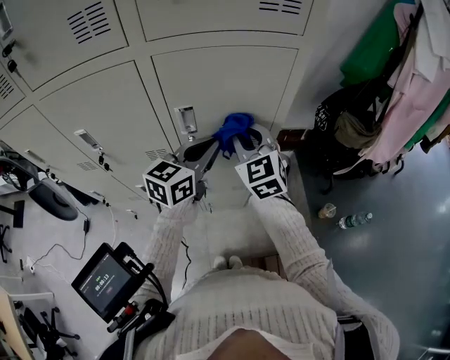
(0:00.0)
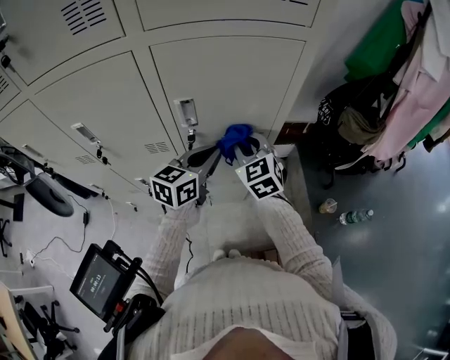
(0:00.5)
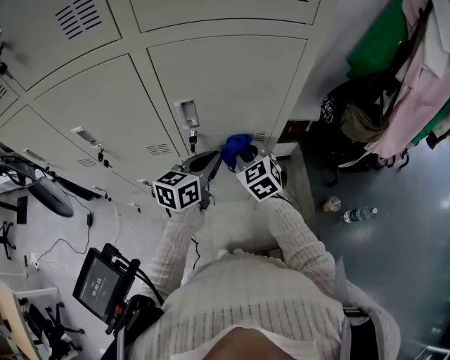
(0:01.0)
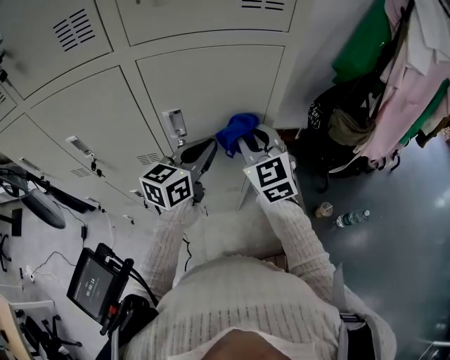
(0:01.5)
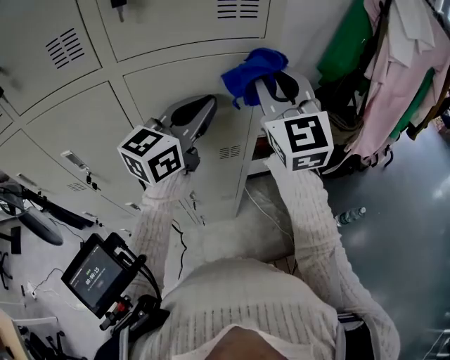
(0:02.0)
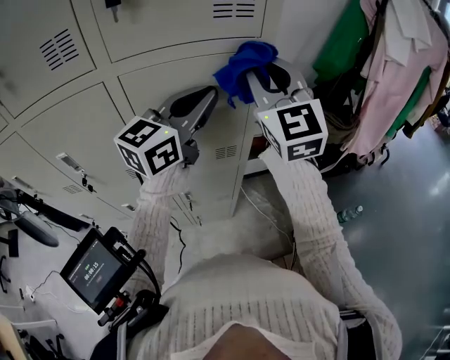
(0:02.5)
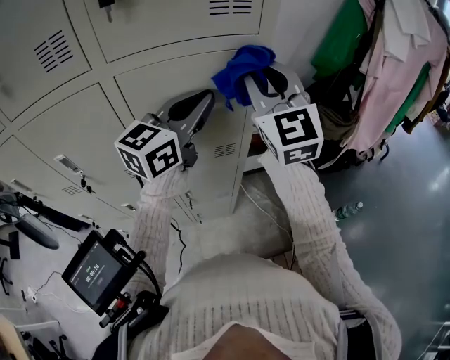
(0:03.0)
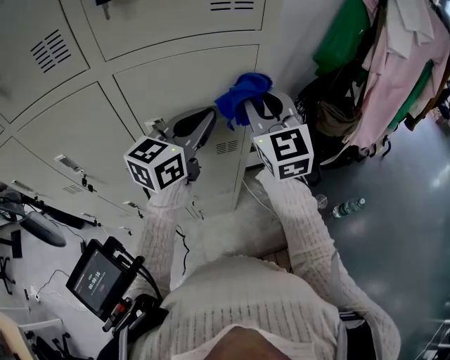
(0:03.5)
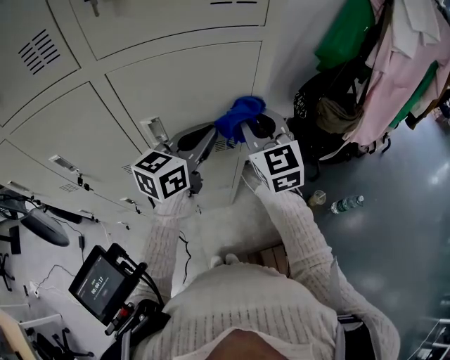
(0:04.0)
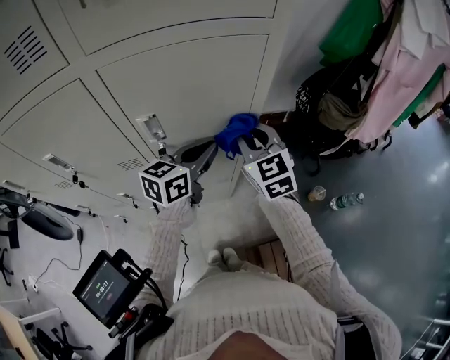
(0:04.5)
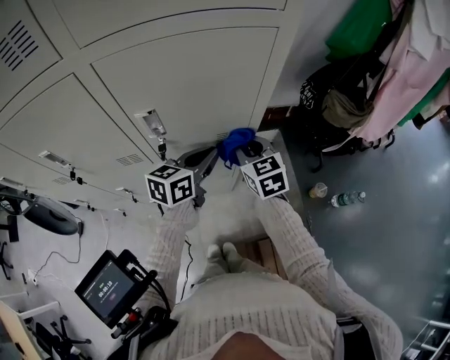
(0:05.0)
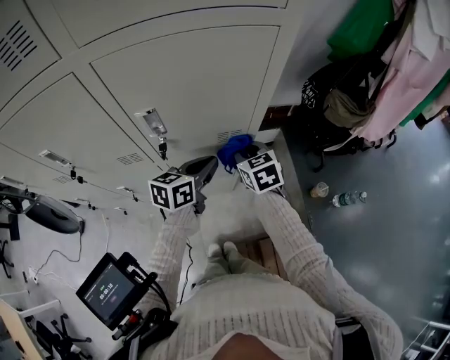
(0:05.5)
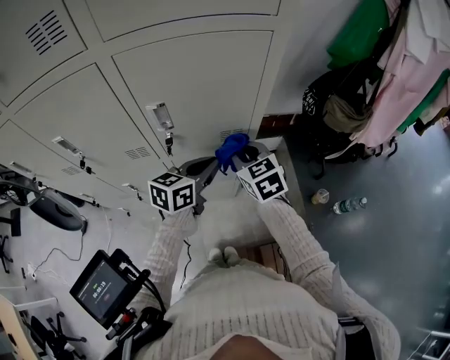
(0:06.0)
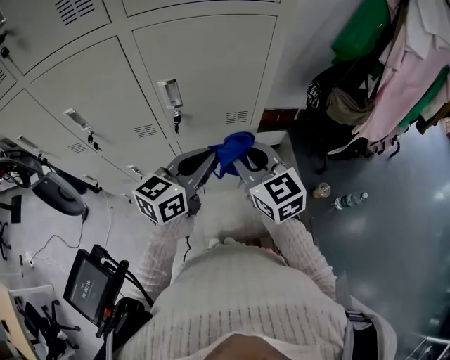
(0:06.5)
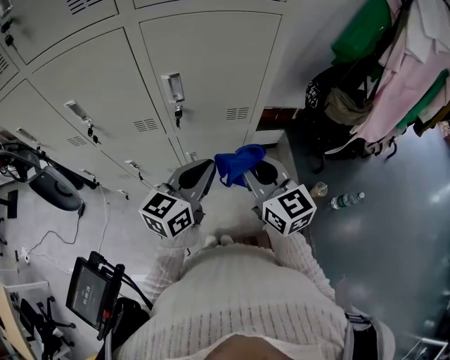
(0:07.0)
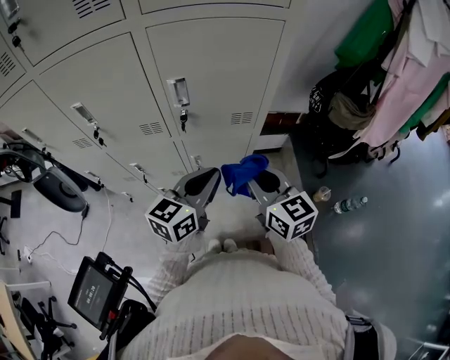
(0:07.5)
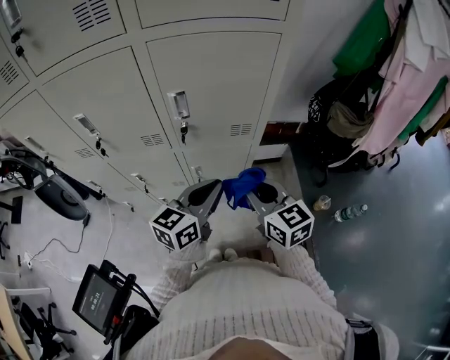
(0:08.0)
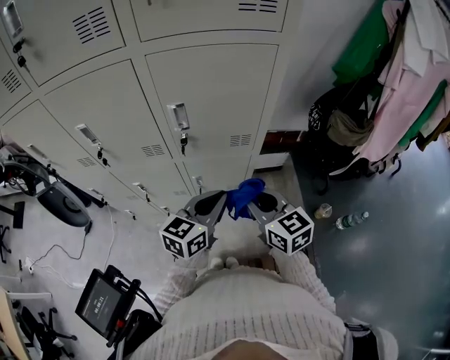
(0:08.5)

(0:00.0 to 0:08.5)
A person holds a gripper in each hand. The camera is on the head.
0:00.0 - 0:02.0: The right gripper is displaced upward and to the right by approximately 25 cm, and rotates roughly 30 degrees, while the left gripper shifts roughly 15 cm upward.
0:02.0 - 0:04.0: The two grippers go approximately 15 cm downward.
0:04.0 - 0:06.5: The grippers both shift backward by approximately 15 cm. The left gripper travels downward and back again, approximately 15 cm each way; the right gripper reaches roughly 20 cm downward, then returns, and turns by about 20 degrees.
0:06.5 - 0:08.5: The two grippers go some 5 cm downward.

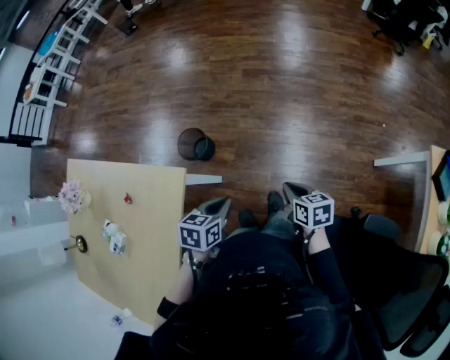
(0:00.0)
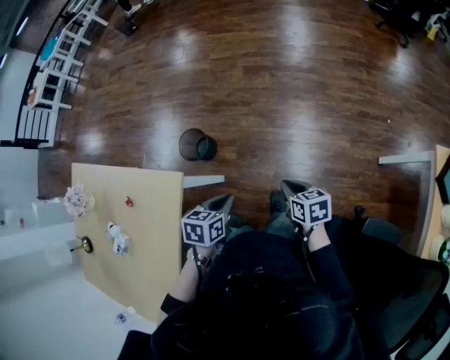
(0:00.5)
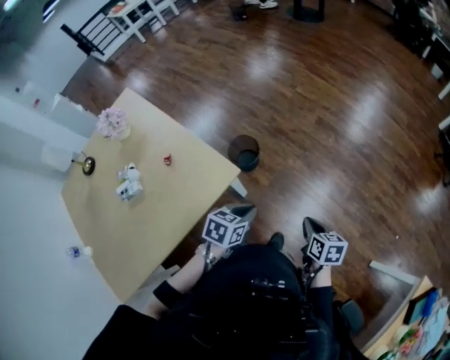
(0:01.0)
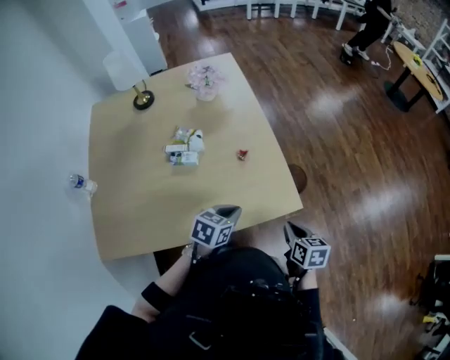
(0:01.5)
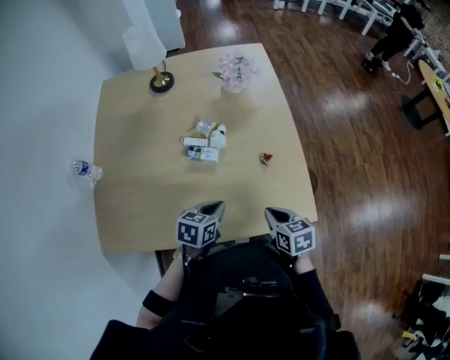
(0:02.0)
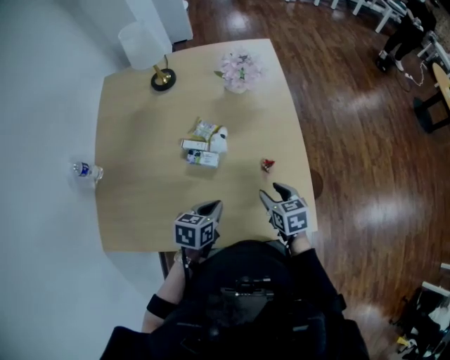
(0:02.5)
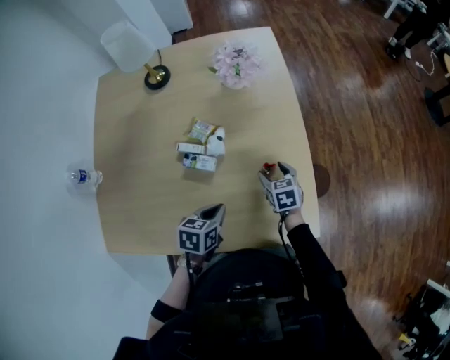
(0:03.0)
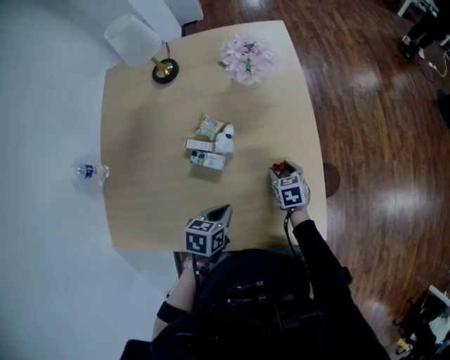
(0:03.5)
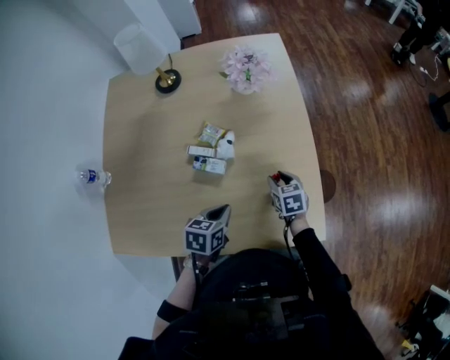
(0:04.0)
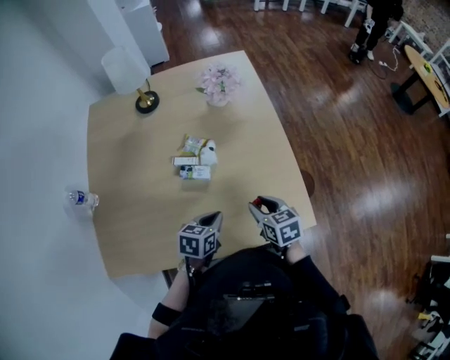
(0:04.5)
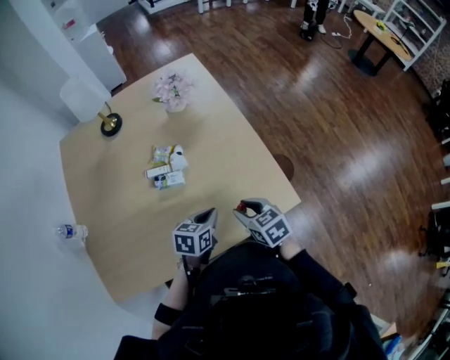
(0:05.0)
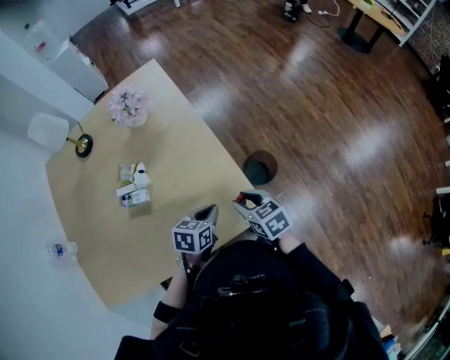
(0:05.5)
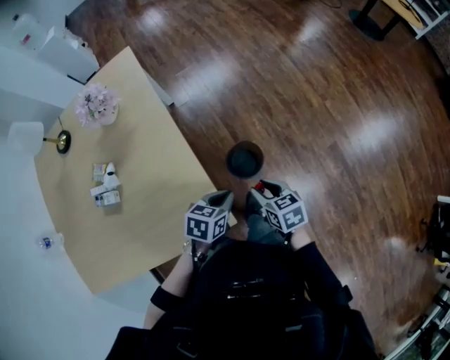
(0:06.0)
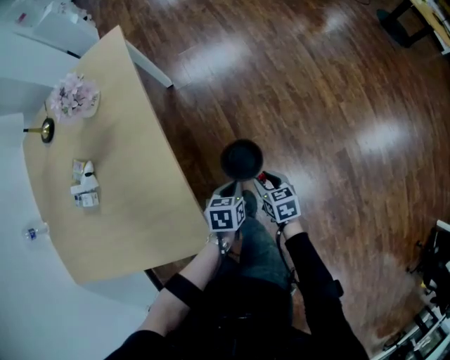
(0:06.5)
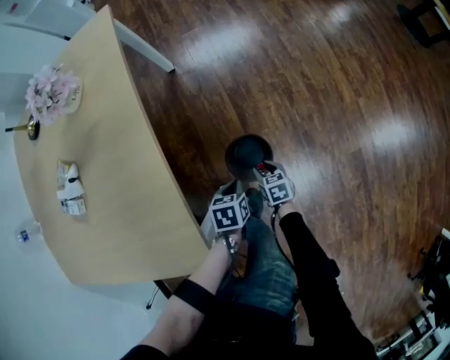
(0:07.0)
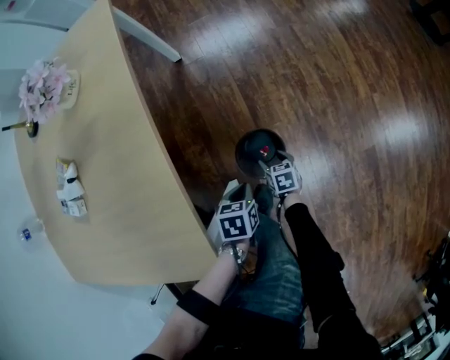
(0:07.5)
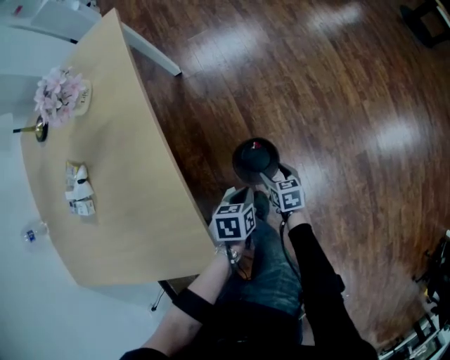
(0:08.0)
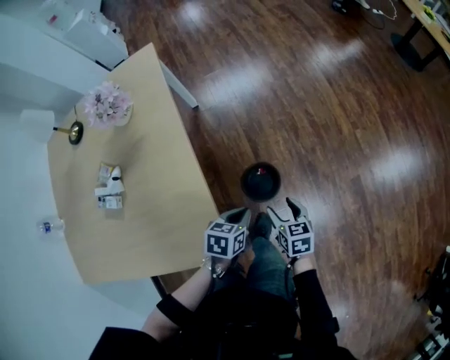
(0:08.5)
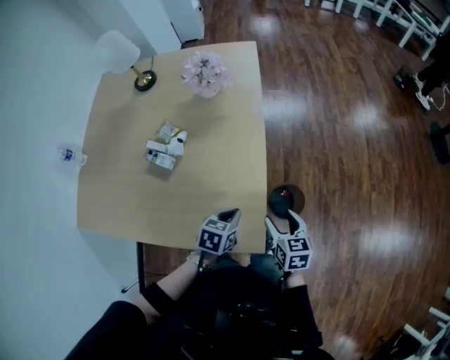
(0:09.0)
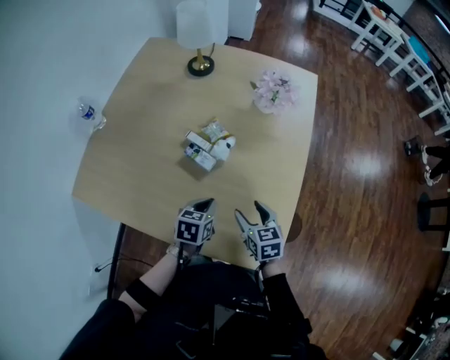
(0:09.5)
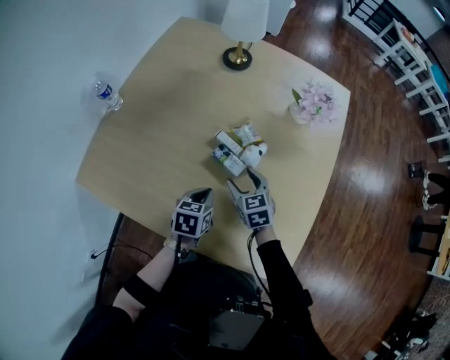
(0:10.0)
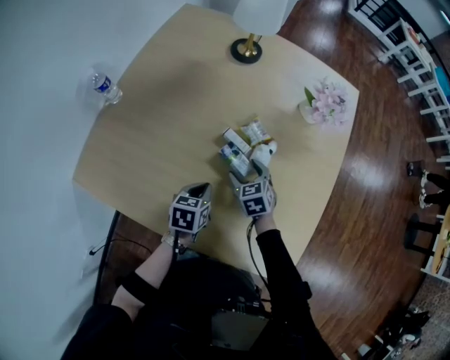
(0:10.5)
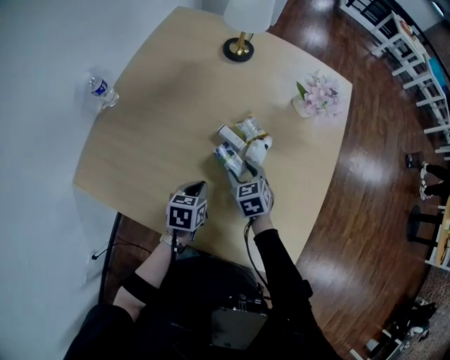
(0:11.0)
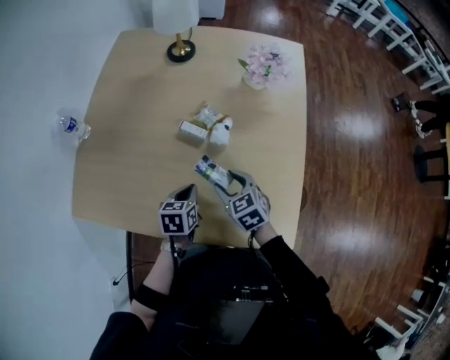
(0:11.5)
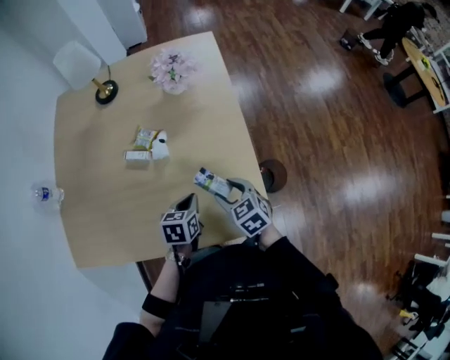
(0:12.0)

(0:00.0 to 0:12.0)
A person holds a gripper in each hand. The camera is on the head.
0:00.0 - 0:02.0: The two grippers travel together, about 50 cm. The right gripper changes its angle by roughly 80 degrees, while the left gripper turns by about 70 degrees.
0:02.0 - 0:04.0: The left gripper moves forward, approximately 5 cm, while the right gripper heads forward and downward, covering roughly 20 cm, and opens.
0:04.0 - 0:06.0: The two grippers go approximately 40 cm to the right. The left gripper turns by roughly 30 degrees.
0:06.0 - 0:08.0: The grippers both shift downward by about 25 cm. The right gripper opens its fingers; the left gripper turns by roughly 30 degrees.
0:08.0 - 0:10.0: The pair of grippers is taken some 60 cm. The right gripper rolls counterclockwise, seen from behind, by some 50 degrees. Meanwhile the left gripper turns by approximately 30 degrees.
0:10.0 - 0:12.0: The right gripper is displaced to the right and backward by approximately 25 cm; the left gripper shifts roughly 15 cm to the right, and swivels about 20 degrees.

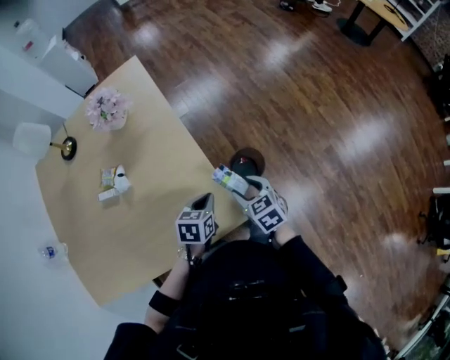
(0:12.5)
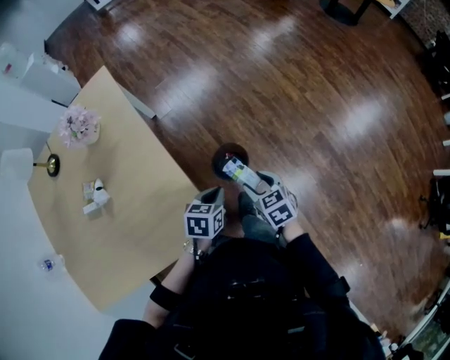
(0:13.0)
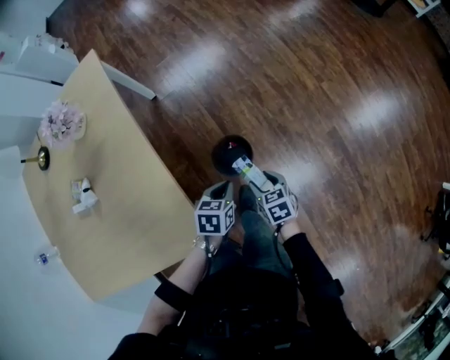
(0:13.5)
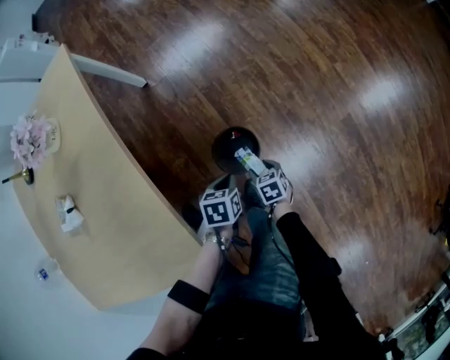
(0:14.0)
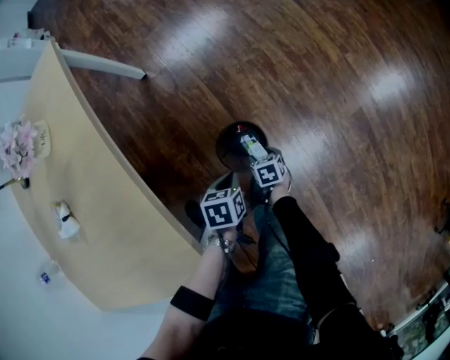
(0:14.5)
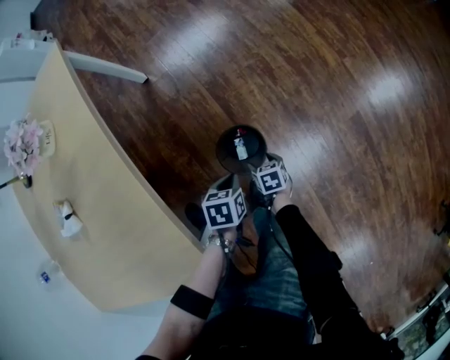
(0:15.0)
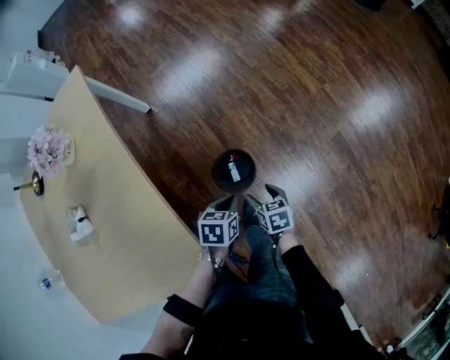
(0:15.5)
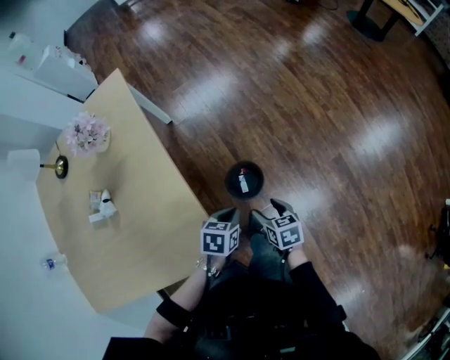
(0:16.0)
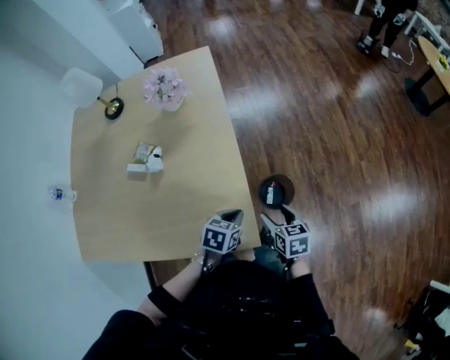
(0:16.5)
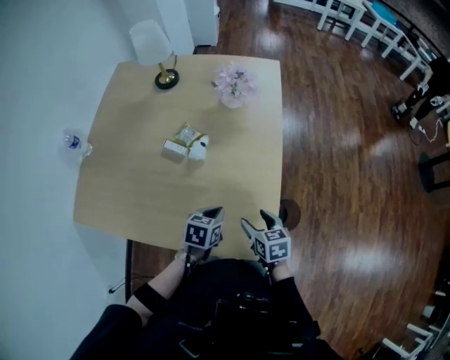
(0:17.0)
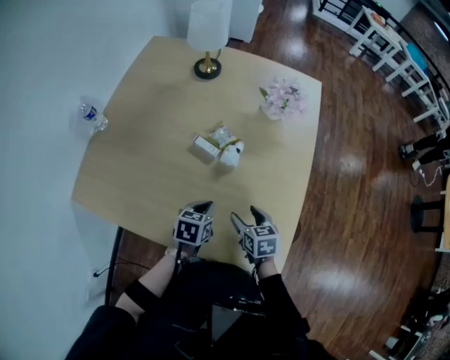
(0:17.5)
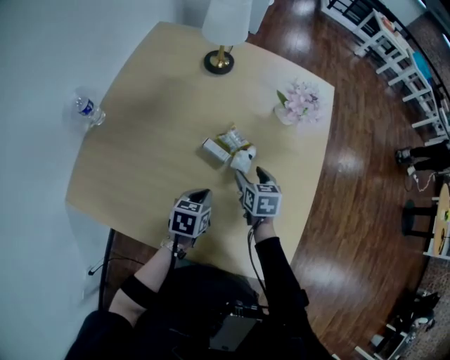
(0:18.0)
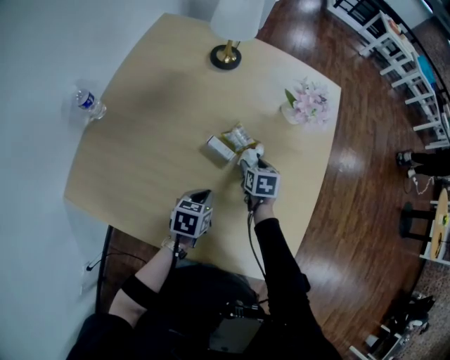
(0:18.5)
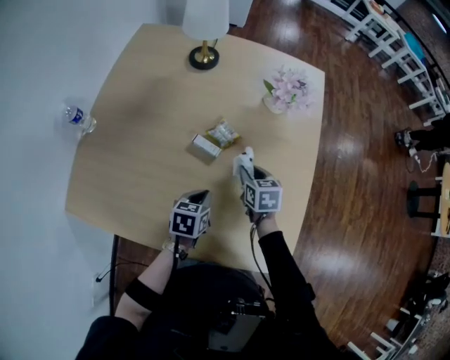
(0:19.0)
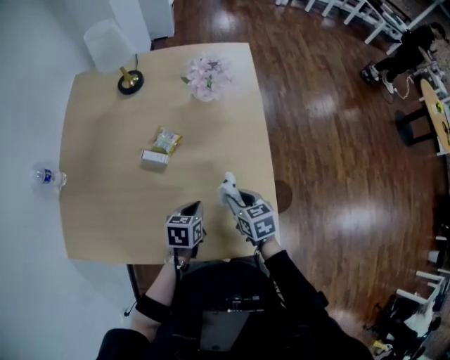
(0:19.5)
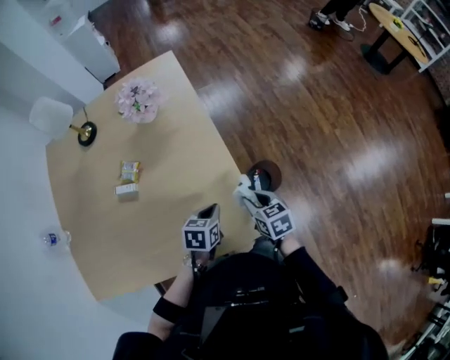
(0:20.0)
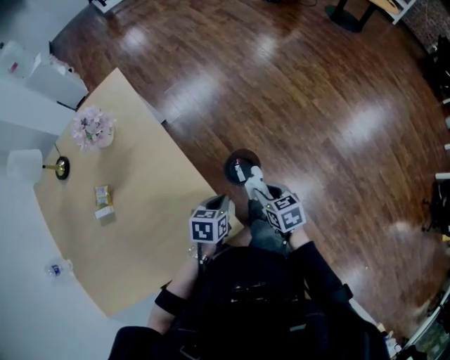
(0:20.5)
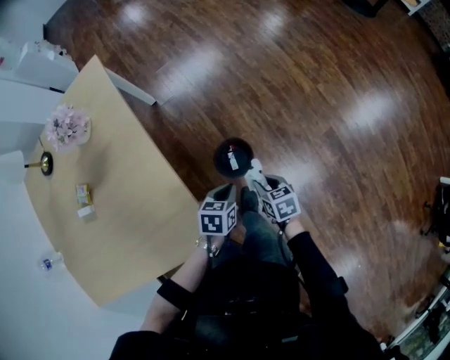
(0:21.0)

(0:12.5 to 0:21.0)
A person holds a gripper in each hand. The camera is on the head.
0:12.5 - 0:14.5: The right gripper goes about 50 cm downward, and swivels roughly 40 degrees, while the left gripper heads downward and to the right, covering roughly 30 cm, and turns by approximately 20 degrees.
0:14.5 - 0:16.5: The left gripper is displaced upward and to the left by about 30 cm. Meanwhile the right gripper goes about 40 cm upward, and changes its angle by approximately 30 degrees.
0:16.5 - 0:19.0: The left gripper moves roughly 40 cm, and changes its angle by approximately 30 degrees. The right gripper moves about 5 cm downward and comes back, turns by roughly 20 degrees, and closes up.
0:19.0 - 0:21.0: Both grippers are carried roughly 60 cm. The left gripper changes its angle by about 40 degrees; the right gripper turns by about 30 degrees.
